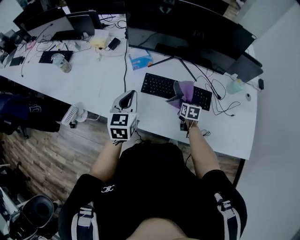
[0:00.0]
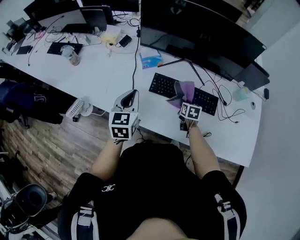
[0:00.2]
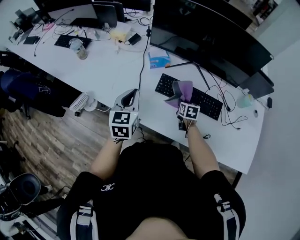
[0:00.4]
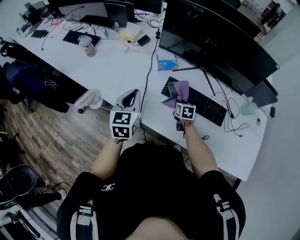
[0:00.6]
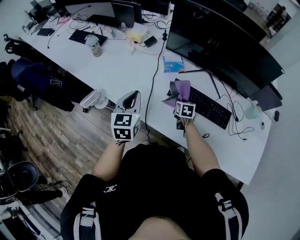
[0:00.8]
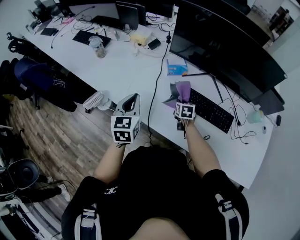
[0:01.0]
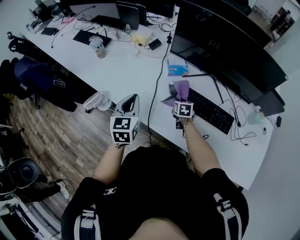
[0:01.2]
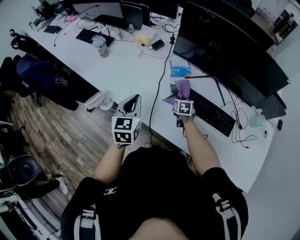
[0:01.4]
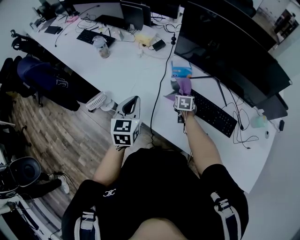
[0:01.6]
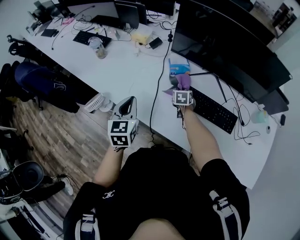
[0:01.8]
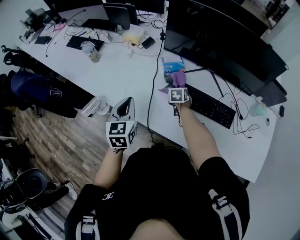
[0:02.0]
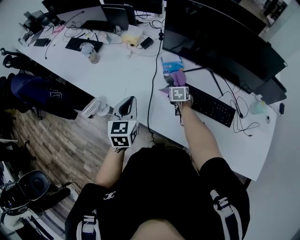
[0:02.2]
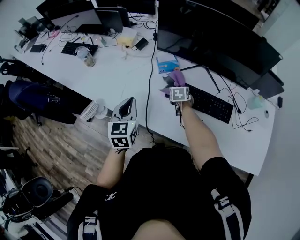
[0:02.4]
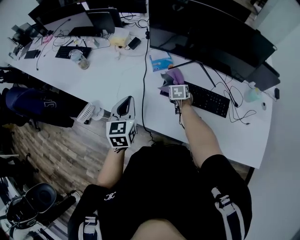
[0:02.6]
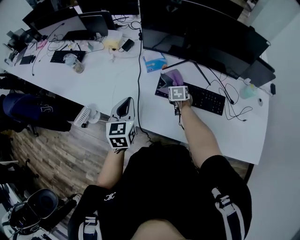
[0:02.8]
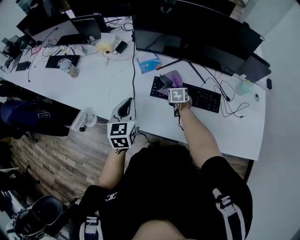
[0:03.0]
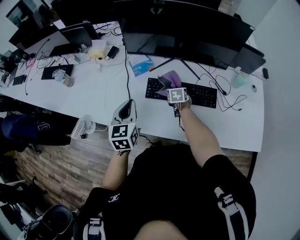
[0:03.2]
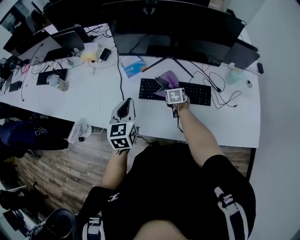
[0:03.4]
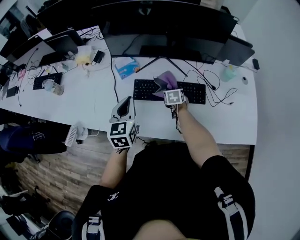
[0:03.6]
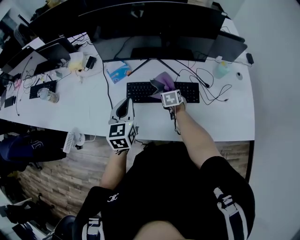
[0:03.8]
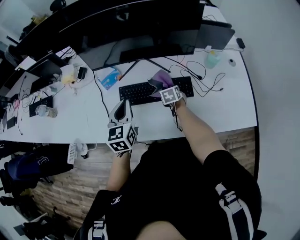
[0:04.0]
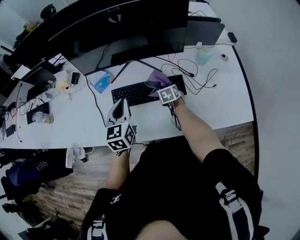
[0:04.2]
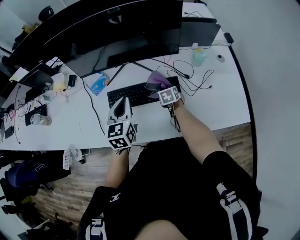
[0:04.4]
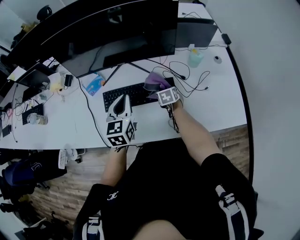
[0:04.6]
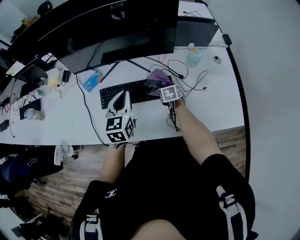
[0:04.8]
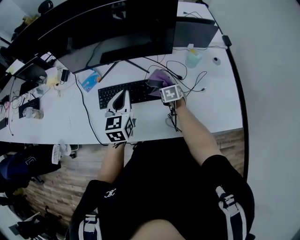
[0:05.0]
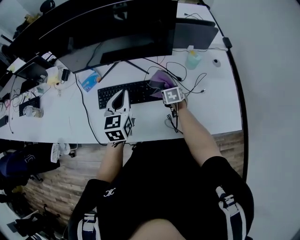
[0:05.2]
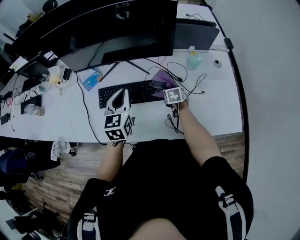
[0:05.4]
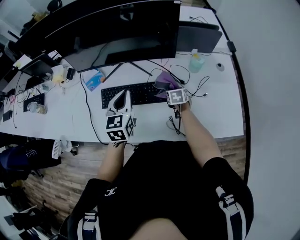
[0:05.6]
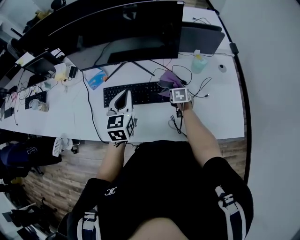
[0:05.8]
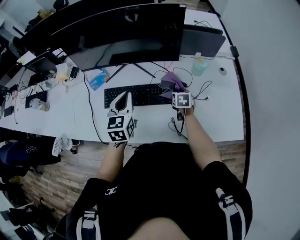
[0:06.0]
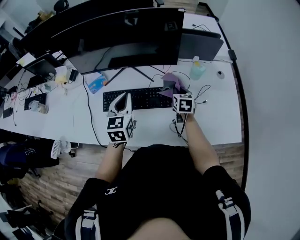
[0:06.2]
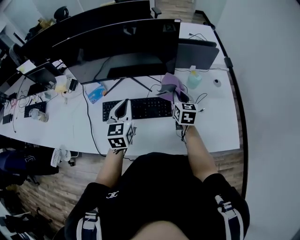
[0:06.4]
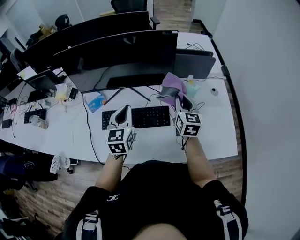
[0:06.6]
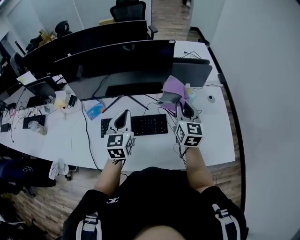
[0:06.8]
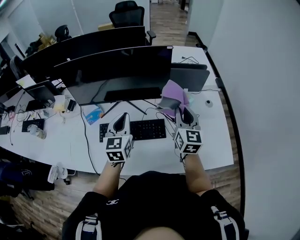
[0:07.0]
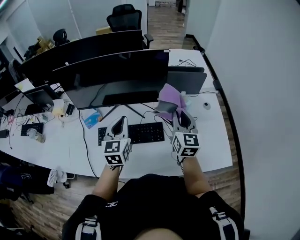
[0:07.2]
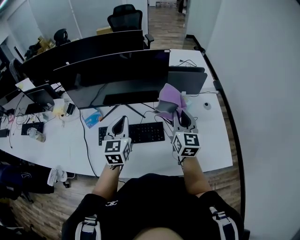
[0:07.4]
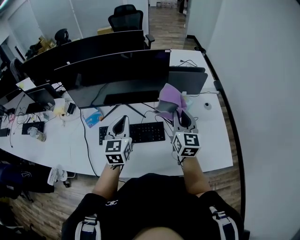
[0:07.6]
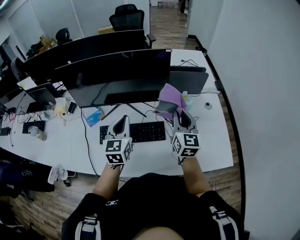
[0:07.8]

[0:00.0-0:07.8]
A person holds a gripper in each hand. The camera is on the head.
0:00.0 to 0:01.6: The left gripper travels to the left by approximately 15 cm. The right gripper goes some 25 cm to the left and forward, and turns by about 20 degrees.
0:01.6 to 0:03.2: Both grippers travel together to the right, roughly 15 cm.
0:03.2 to 0:04.6: The two grippers go roughly 25 cm to the right.
0:04.6 to 0:06.2: The right gripper goes roughly 15 cm to the right and upward.
0:06.2 to 0:07.8: The left gripper heads upward, covering some 5 cm, while the right gripper goes about 25 cm upward, and angles its fingers upward, by approximately 30 degrees.

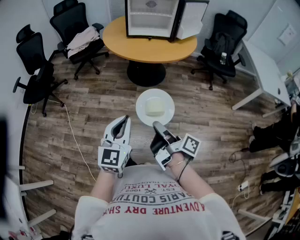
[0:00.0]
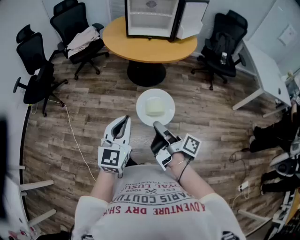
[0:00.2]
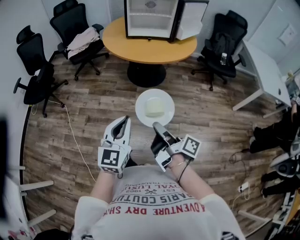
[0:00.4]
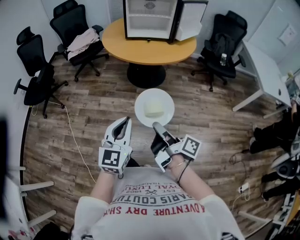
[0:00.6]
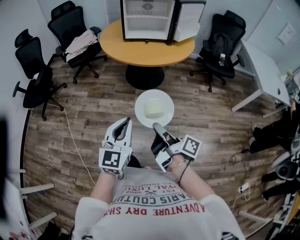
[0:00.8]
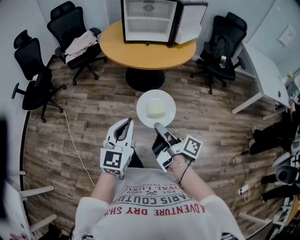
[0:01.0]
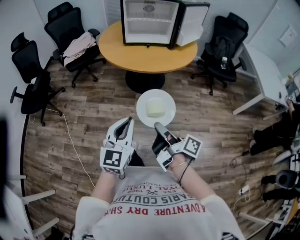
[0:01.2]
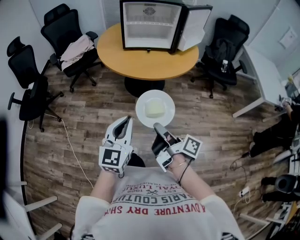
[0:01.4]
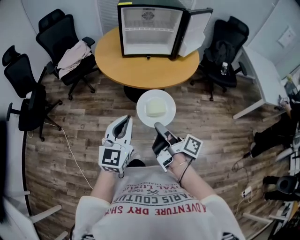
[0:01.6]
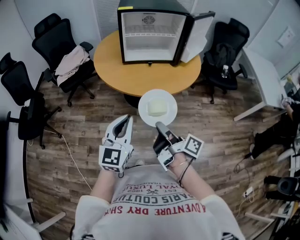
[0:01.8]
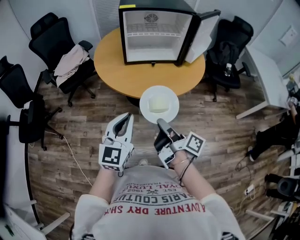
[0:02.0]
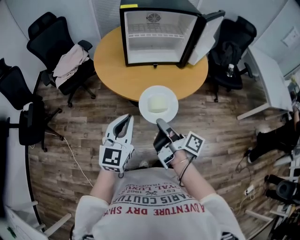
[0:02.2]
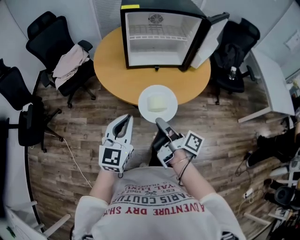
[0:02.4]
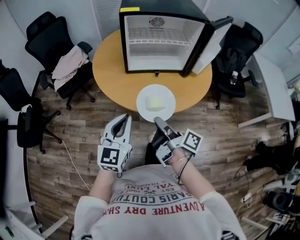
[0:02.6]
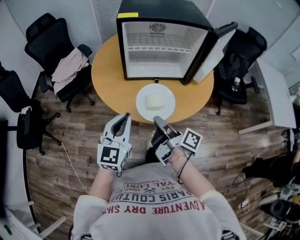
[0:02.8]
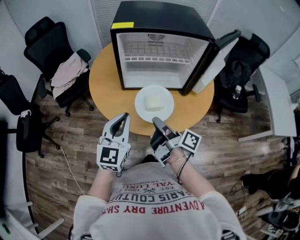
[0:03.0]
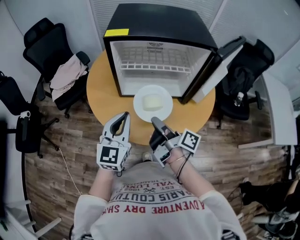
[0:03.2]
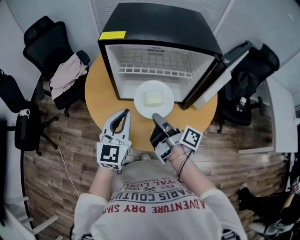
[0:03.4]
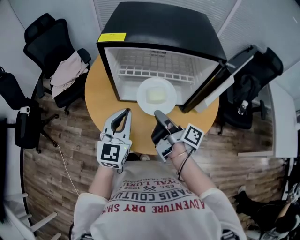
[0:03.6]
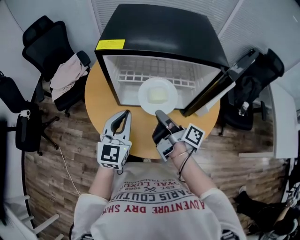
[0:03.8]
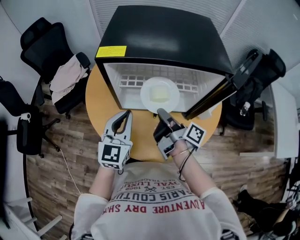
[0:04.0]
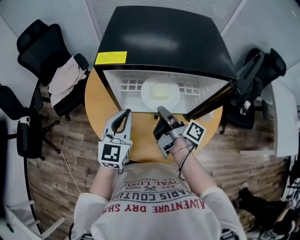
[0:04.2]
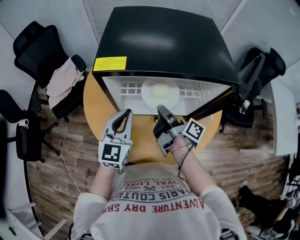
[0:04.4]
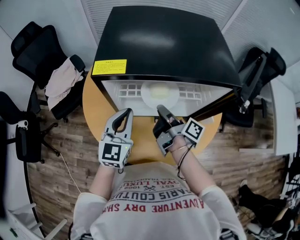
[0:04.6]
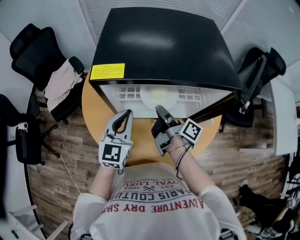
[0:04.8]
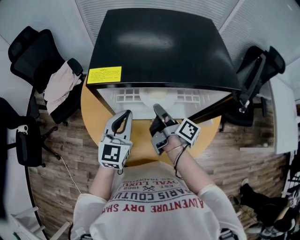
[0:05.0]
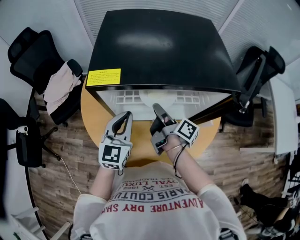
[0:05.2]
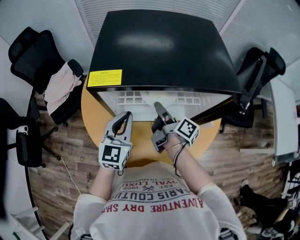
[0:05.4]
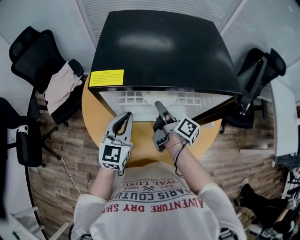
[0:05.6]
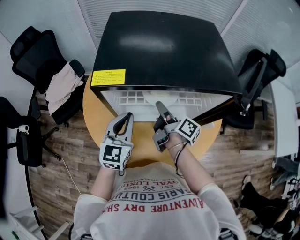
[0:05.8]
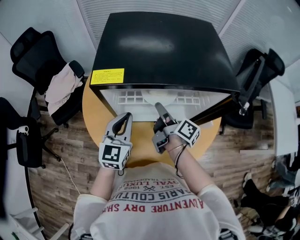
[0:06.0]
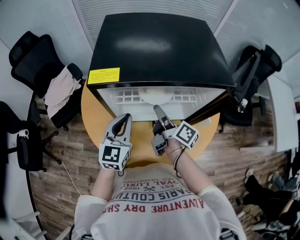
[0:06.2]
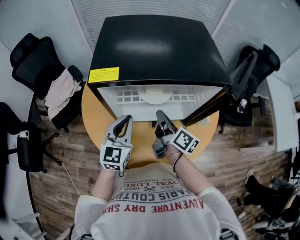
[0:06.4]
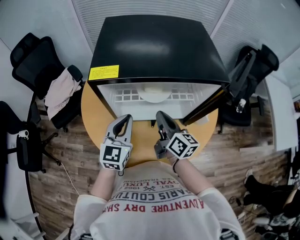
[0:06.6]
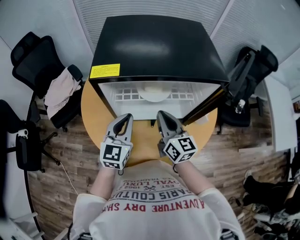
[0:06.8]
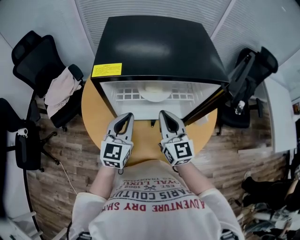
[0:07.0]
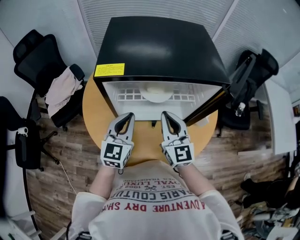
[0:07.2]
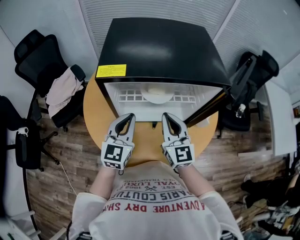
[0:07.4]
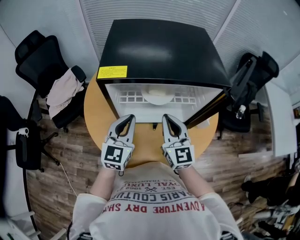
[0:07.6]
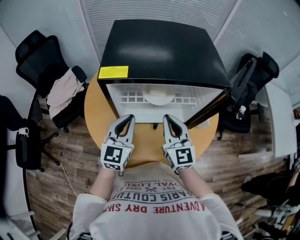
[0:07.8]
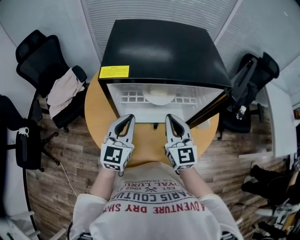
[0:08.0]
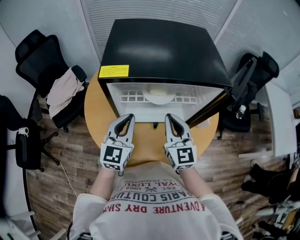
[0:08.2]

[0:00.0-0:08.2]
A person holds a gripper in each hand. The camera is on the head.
0:00.0 to 0:01.6: The left gripper shifts by about 25 cm.
0:01.6 to 0:03.2: The left gripper changes place by some 40 cm.
0:03.2 to 0:05.0: The left gripper ends up some 20 cm from where it was.

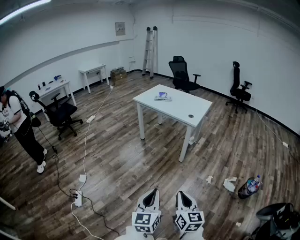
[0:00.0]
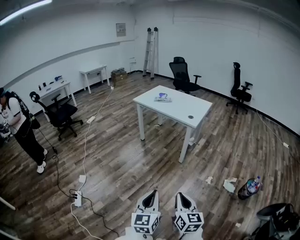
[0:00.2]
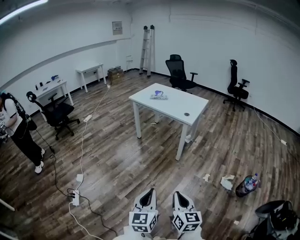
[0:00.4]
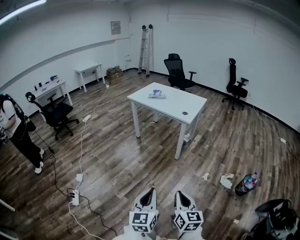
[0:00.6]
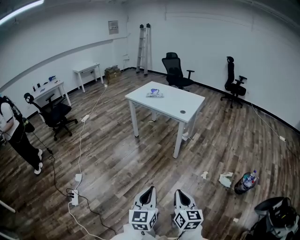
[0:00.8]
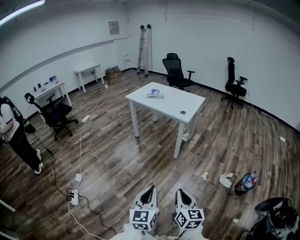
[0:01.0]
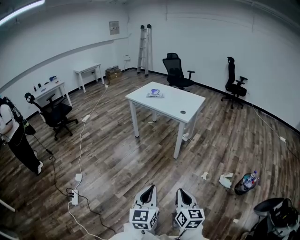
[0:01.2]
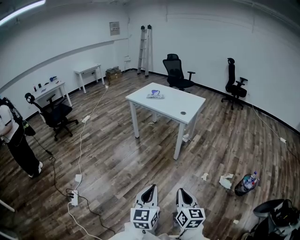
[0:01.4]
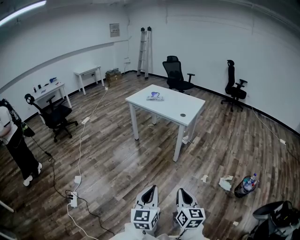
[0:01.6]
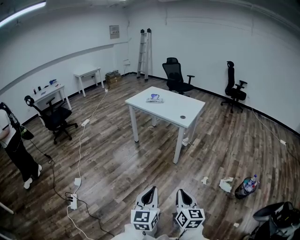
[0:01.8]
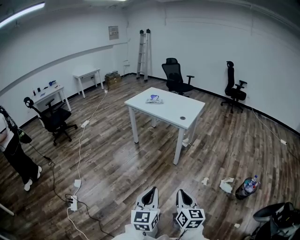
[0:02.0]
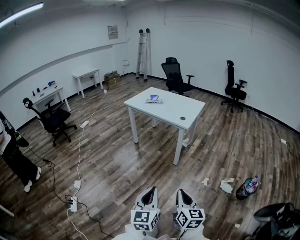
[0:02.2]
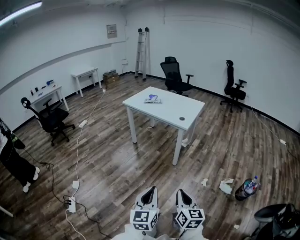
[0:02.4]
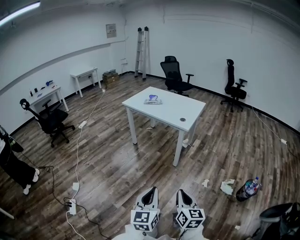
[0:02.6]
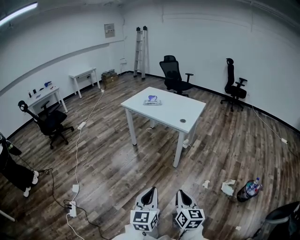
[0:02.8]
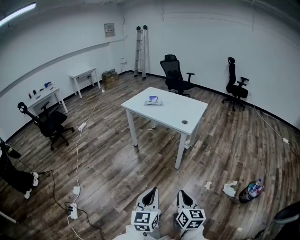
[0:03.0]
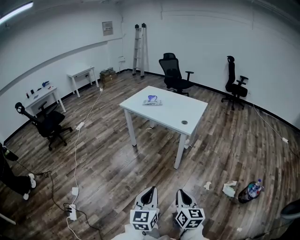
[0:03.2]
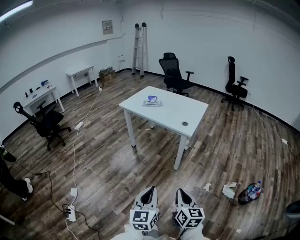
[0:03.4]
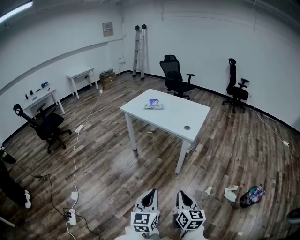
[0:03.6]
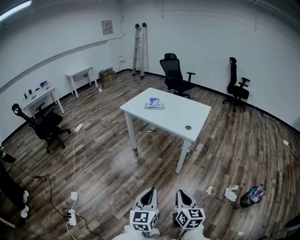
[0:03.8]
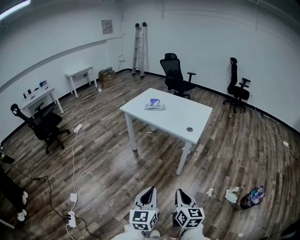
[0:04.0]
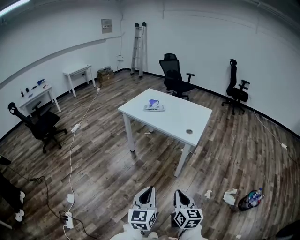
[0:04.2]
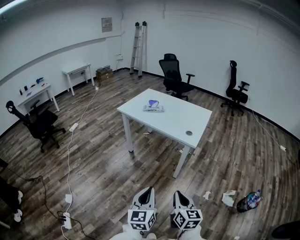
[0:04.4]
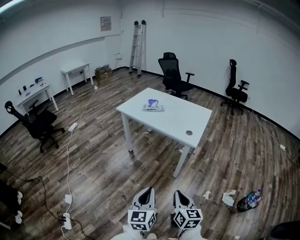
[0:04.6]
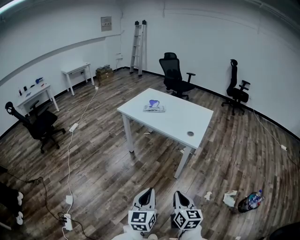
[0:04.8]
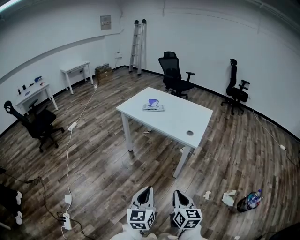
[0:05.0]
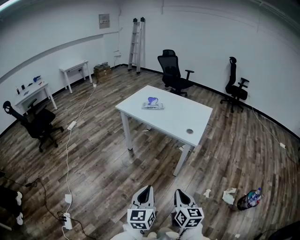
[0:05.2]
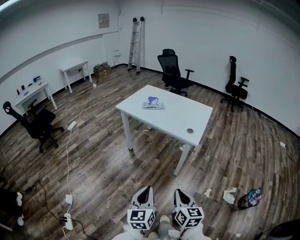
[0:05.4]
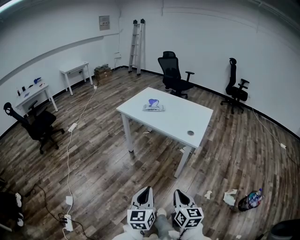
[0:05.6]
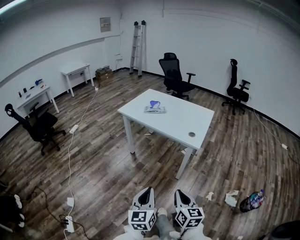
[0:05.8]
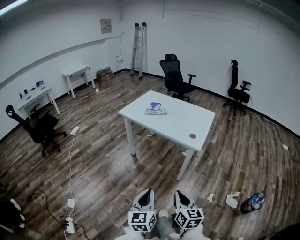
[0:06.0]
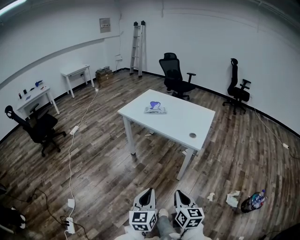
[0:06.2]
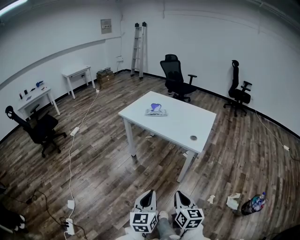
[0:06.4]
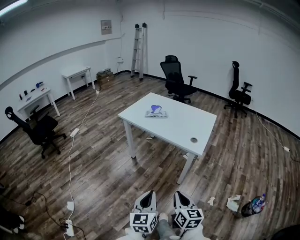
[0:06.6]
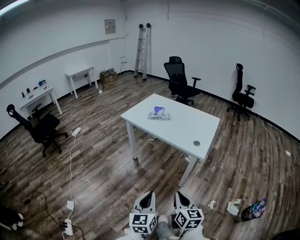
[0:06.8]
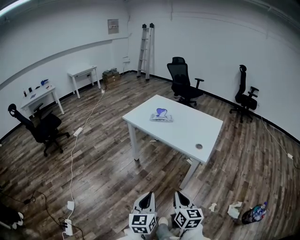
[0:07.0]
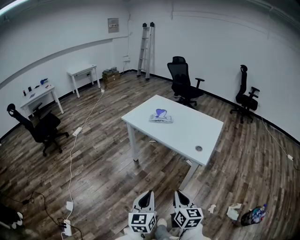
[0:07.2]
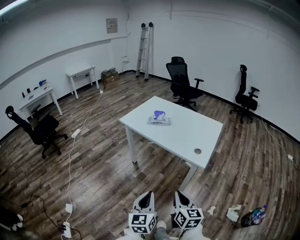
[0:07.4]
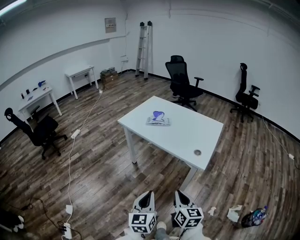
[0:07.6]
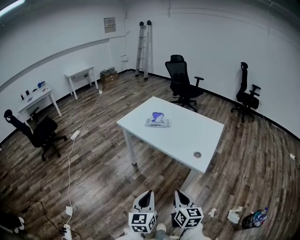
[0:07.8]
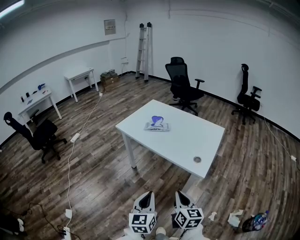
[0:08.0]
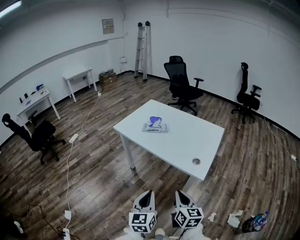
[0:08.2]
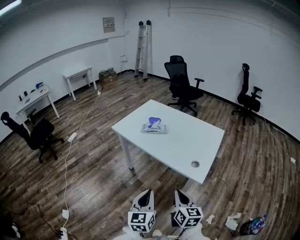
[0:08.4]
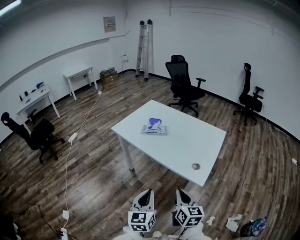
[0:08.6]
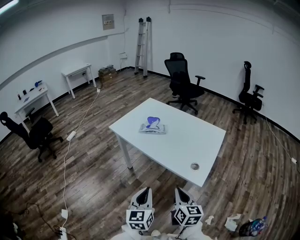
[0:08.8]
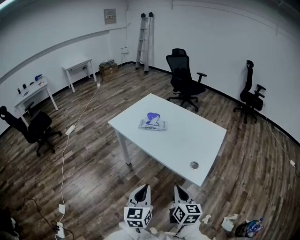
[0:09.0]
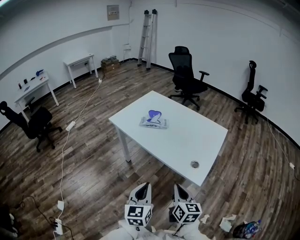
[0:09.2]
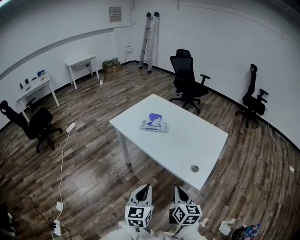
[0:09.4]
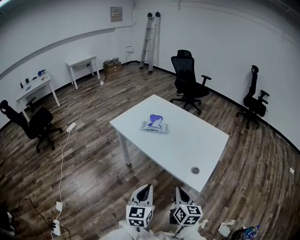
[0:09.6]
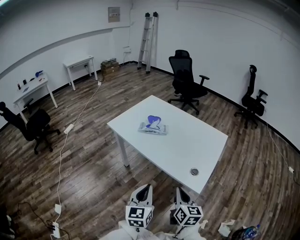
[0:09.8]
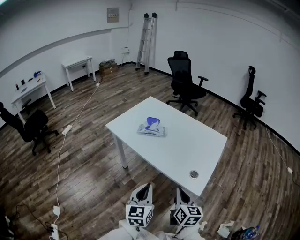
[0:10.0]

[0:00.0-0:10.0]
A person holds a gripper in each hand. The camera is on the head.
0:00.0 to 0:01.4: The two grippers go approximately 5 cm to the right.
0:01.4 to 0:02.8: Both grippers travel together forward, roughly 10 cm.
0:02.8 to 0:04.2: The grippers both shift forward by approximately 15 cm.
0:04.2 to 0:05.8: The left gripper changes place by approximately 5 cm.
0:05.8 to 0:07.2: Both grippers travel together forward, roughly 10 cm.
0:07.2 to 0:08.6: The grippers both shift forward and to the right by roughly 20 cm.
0:08.6 to 0:10.0: Both grippers move forward, about 10 cm.
